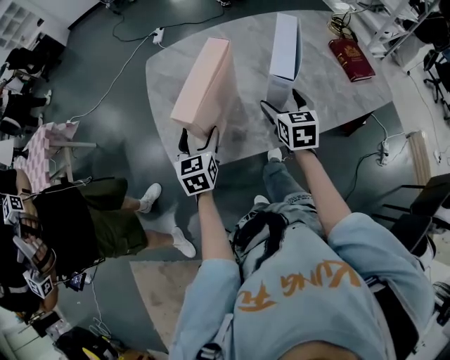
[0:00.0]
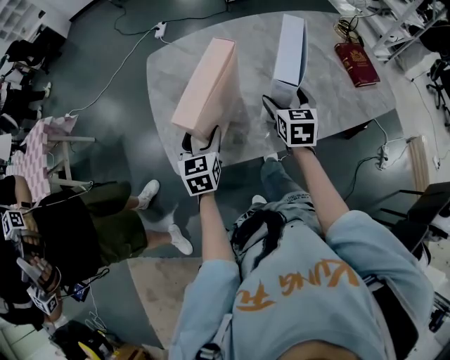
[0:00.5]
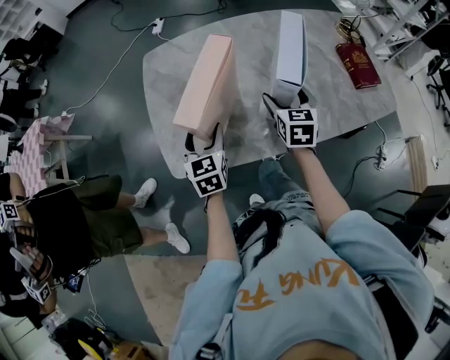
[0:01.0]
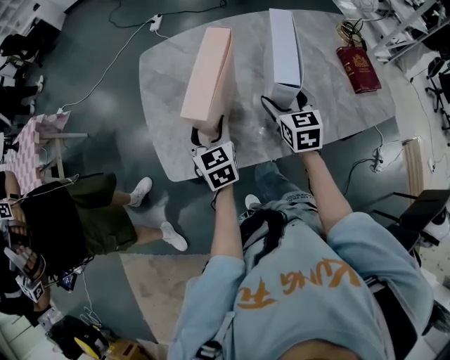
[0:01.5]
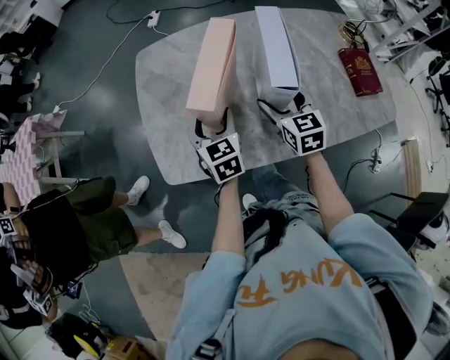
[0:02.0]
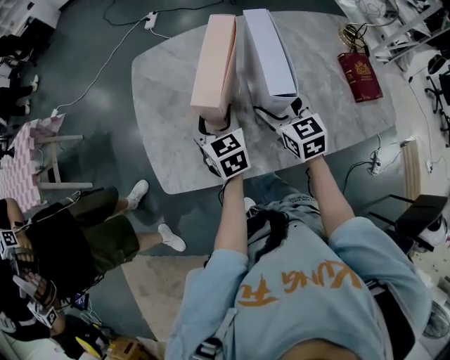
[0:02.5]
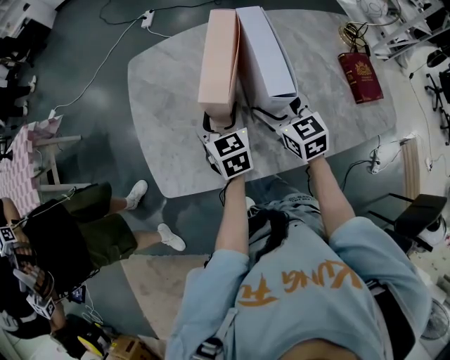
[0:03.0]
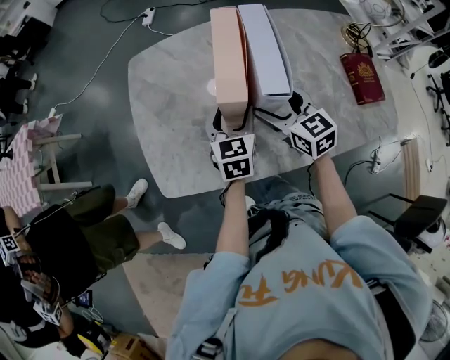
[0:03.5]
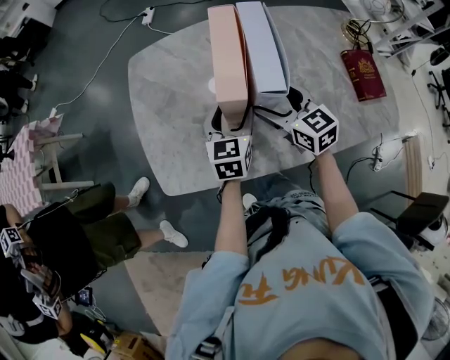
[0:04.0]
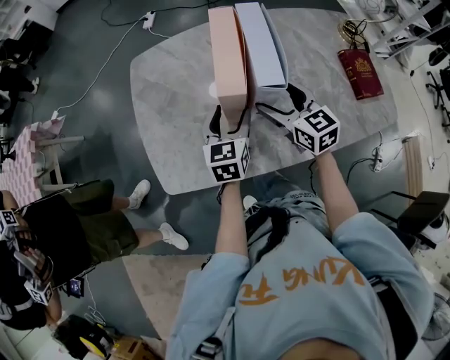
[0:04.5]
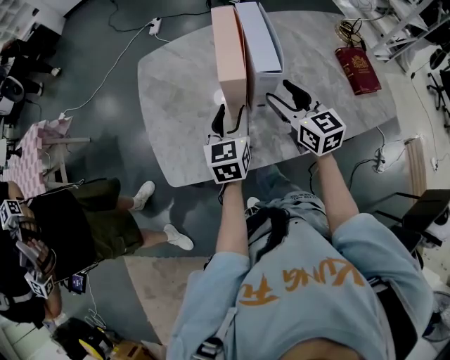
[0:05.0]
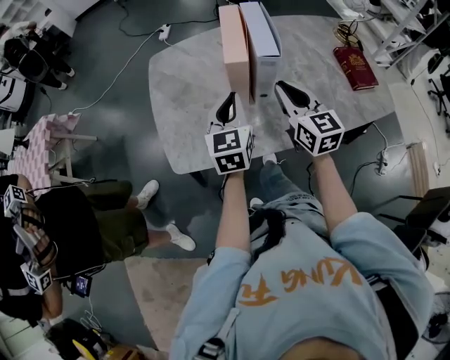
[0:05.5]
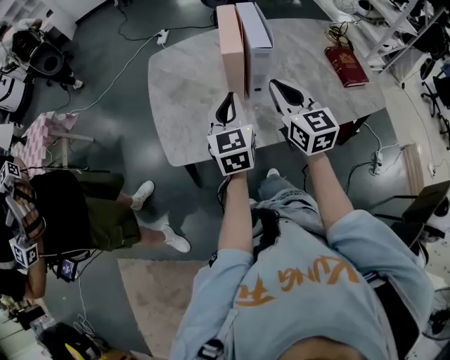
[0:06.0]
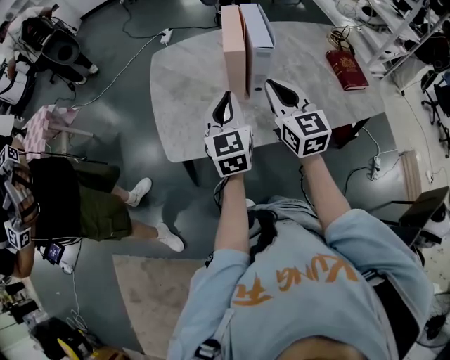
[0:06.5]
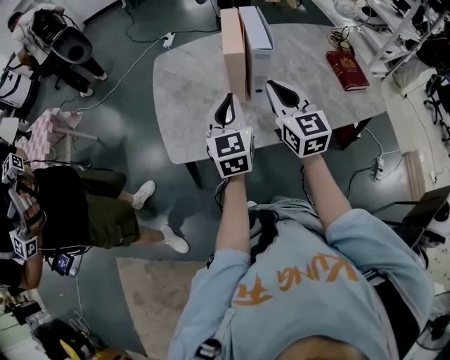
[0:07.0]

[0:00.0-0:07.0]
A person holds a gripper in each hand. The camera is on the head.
0:00.0 to 0:02.0: The right gripper is displaced forward by approximately 10 cm. Meanwhile the left gripper goes roughly 10 cm forward and to the right.
0:02.0 to 0:03.5: The left gripper heads to the right, covering roughly 10 cm.
0:03.5 to 0:05.0: The left gripper shifts some 5 cm backward; the right gripper moves some 5 cm.
0:05.0 to 0:07.0: Both grippers travel together backward and upward, roughly 15 cm. The right gripper closes its fingers. The left gripper closes.

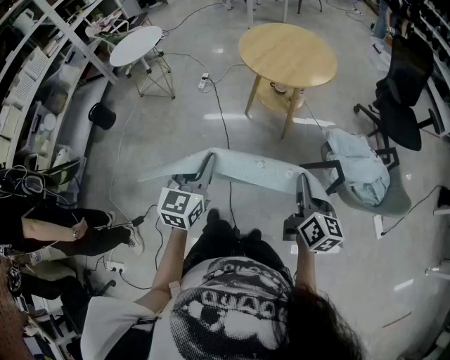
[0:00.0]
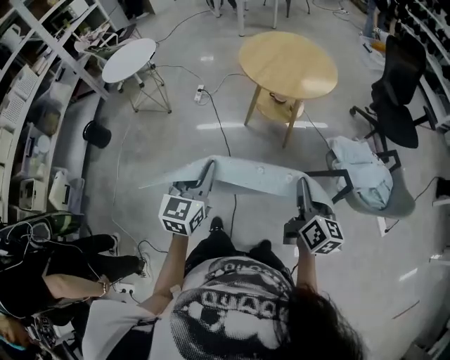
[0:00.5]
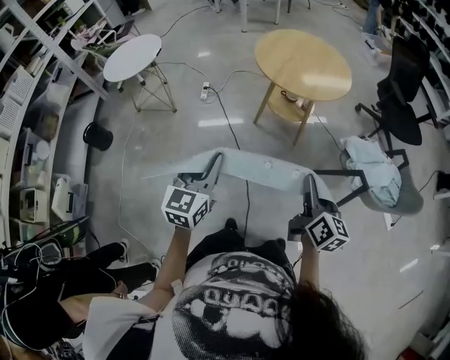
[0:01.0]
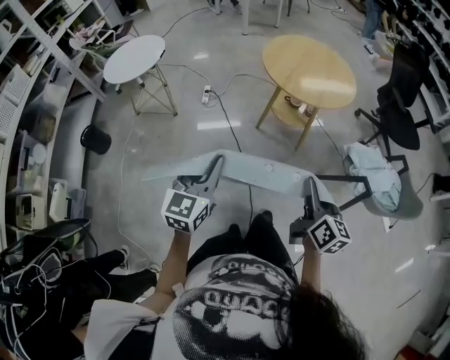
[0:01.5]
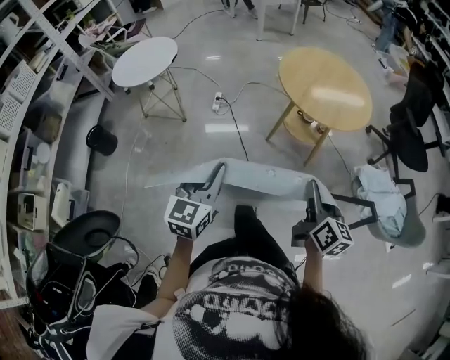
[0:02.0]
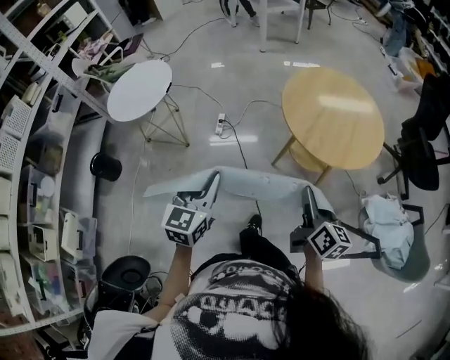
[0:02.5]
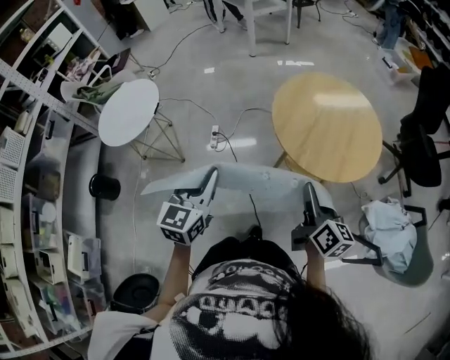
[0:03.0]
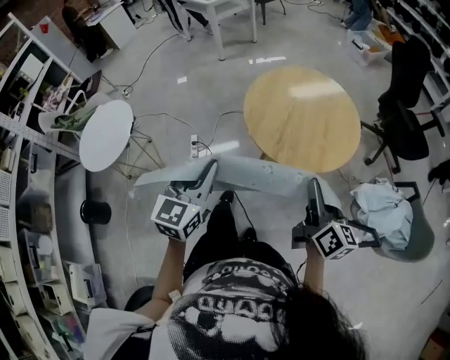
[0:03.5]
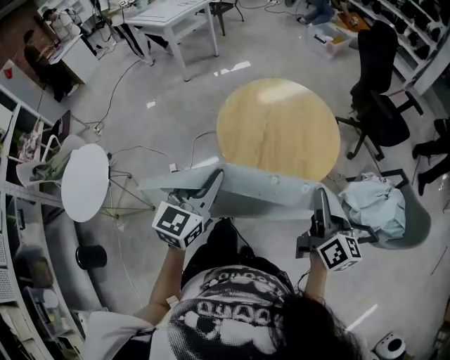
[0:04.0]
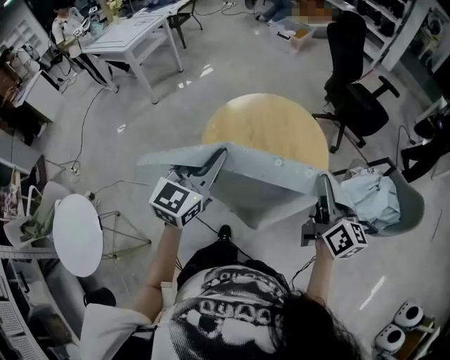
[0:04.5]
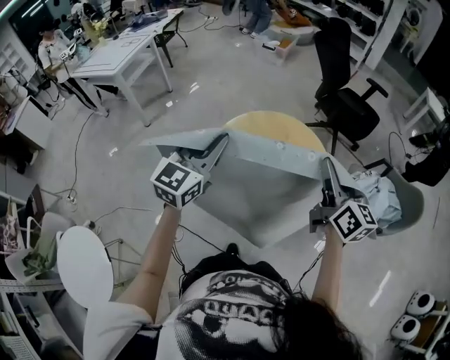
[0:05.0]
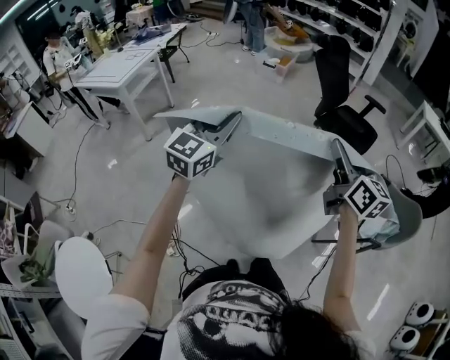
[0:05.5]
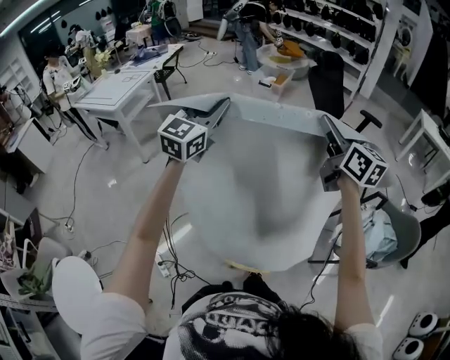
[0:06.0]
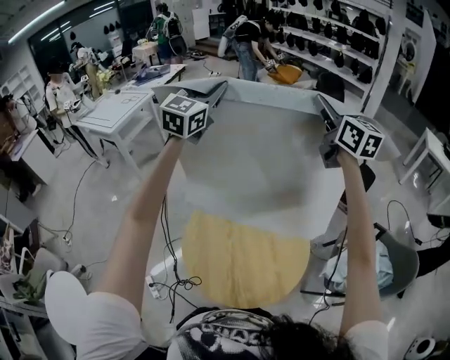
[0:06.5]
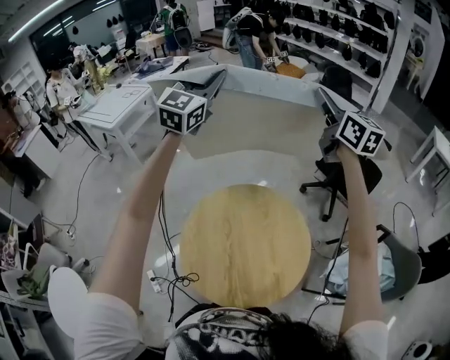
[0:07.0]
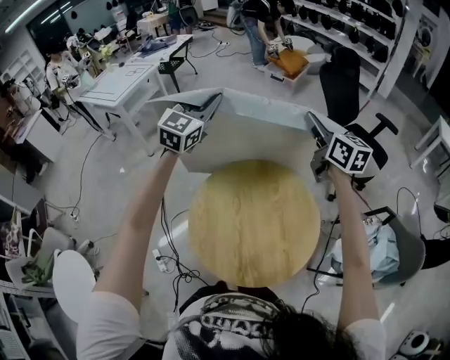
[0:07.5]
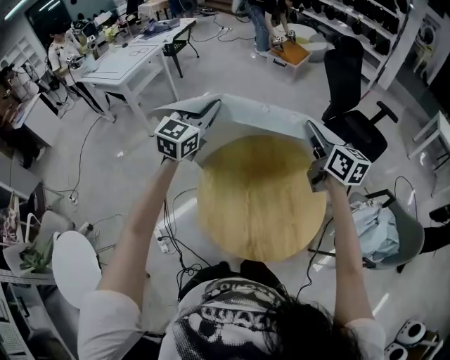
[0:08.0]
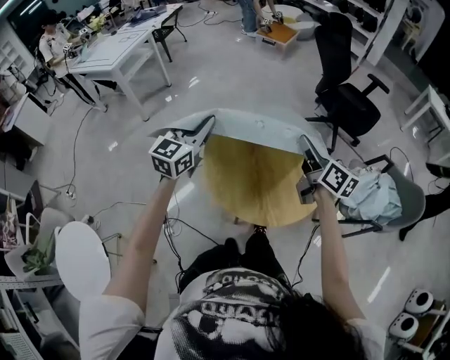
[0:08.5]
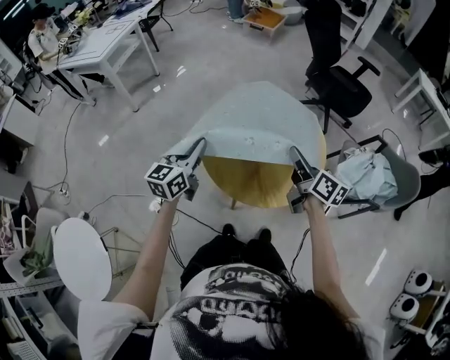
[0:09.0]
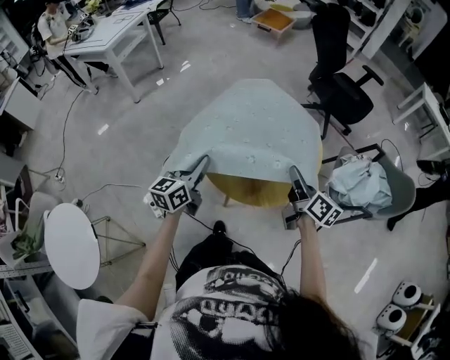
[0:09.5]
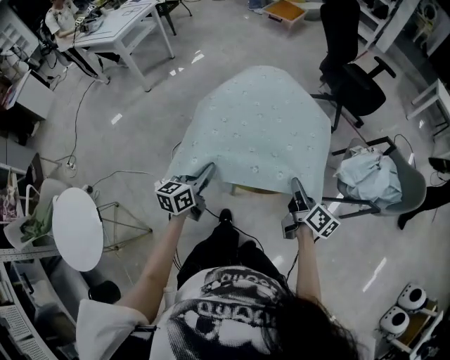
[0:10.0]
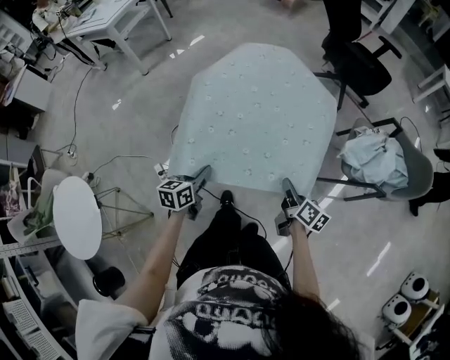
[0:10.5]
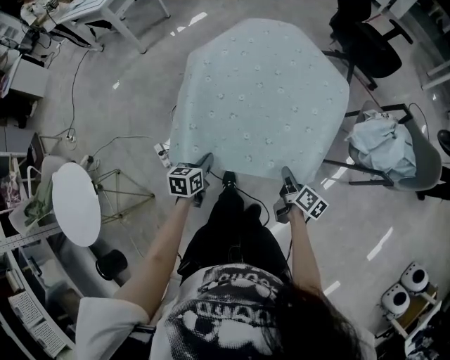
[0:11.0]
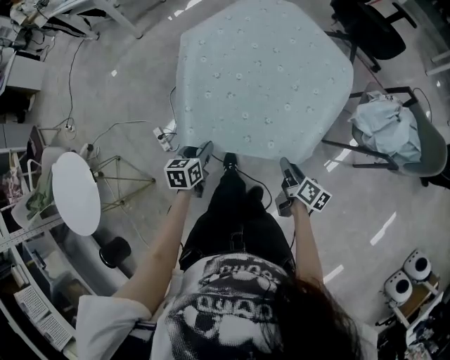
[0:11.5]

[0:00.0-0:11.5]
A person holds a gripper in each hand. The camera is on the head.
0:00.0 to 0:02.0: The grippers both shift to the left and forward by roughly 30 cm.
0:02.0 to 0:04.0: The right gripper shifts by roughly 35 cm, and changes its angle by roughly 30 degrees. The left gripper changes place by approximately 40 cm, and swivels about 30 degrees.
0:04.0 to 0:06.0: The two grippers go approximately 40 cm forward and upward. The left gripper turns by approximately 30 degrees, while the right gripper changes its angle by about 20 degrees.
0:06.0 to 0:07.5: The right gripper travels forward and downward by some 15 cm, while the left gripper is displaced forward by some 10 cm.
0:07.5 to 0:09.5: Both grippers move backward and downward, roughly 50 cm. The left gripper rotates around the line of its fingers by approximately 50 degrees, counterclockwise from behind, while the right gripper turns by approximately 30 degrees.
0:09.5 to 0:11.5: The grippers both shift downward and backward by approximately 25 cm. The right gripper changes its angle by about 20 degrees. Meanwhile the left gripper tilts its fingers roughly 30 degrees downward, and opens up.

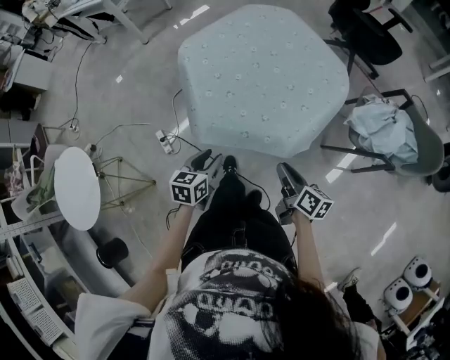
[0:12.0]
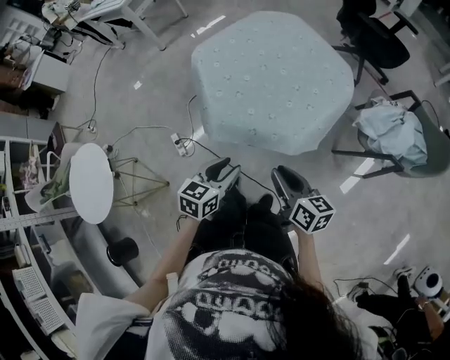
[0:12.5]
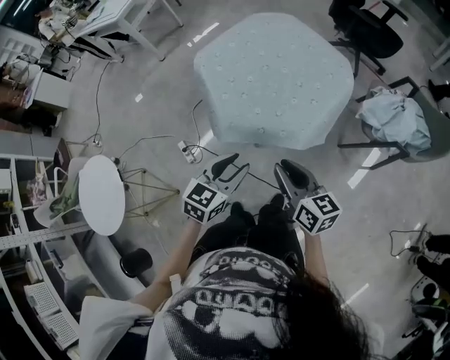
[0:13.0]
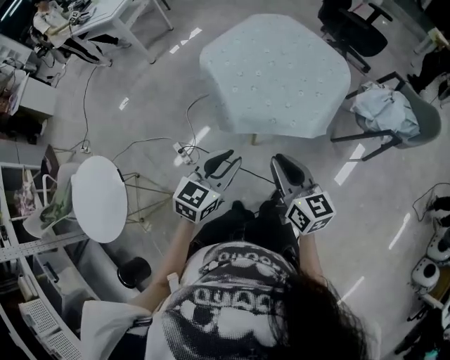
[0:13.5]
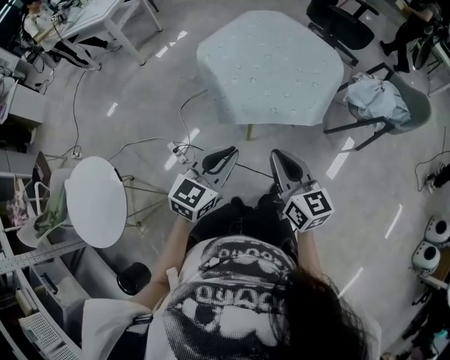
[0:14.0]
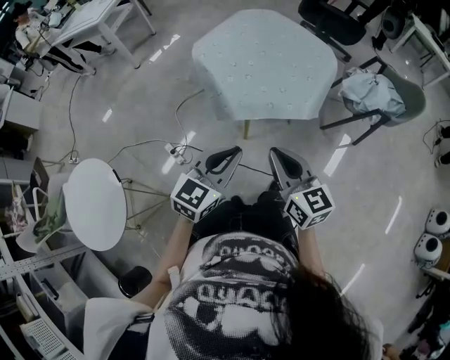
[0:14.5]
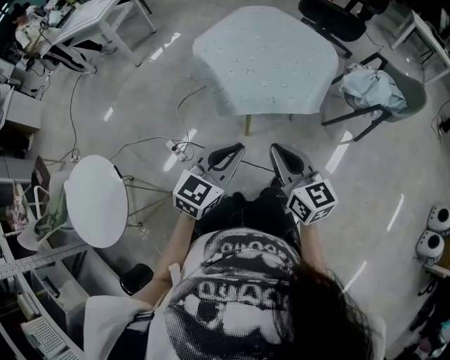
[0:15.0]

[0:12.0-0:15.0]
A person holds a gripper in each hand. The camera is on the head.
0:12.0 to 0:13.5: The right gripper shifts about 25 cm upward, to the left and backward, and changes its angle by about 40 degrees. The left gripper heads upward and backward, covering about 20 cm, and rotates about 30 degrees.
0:13.5 to 0:15.0: Both grippers travel together backward, roughly 5 cm.

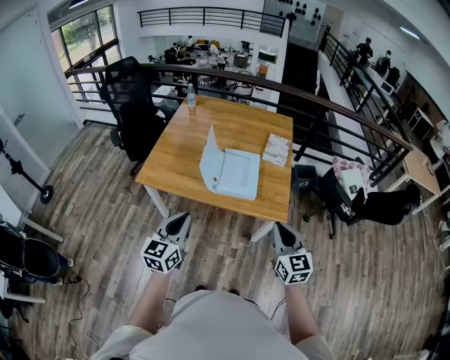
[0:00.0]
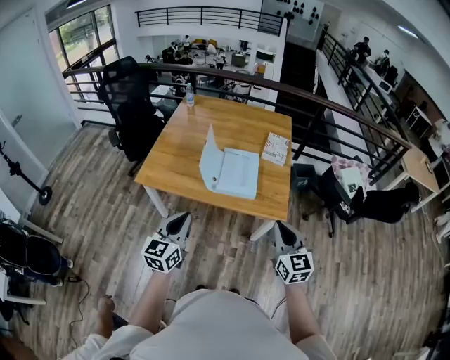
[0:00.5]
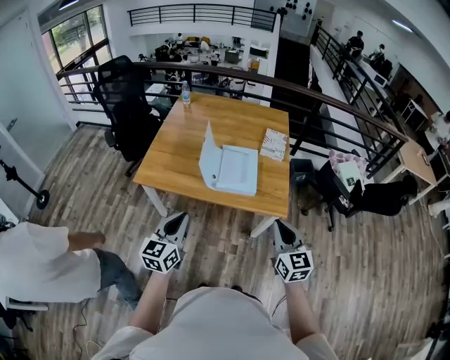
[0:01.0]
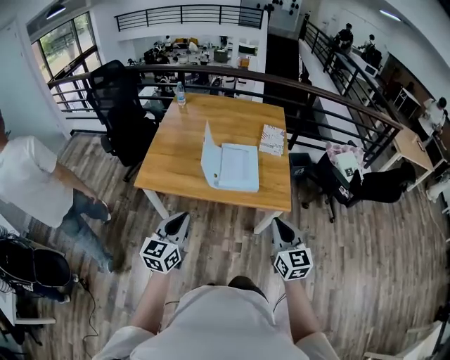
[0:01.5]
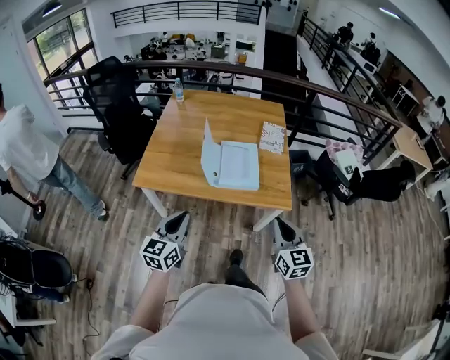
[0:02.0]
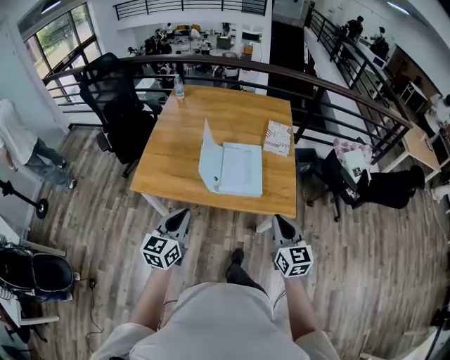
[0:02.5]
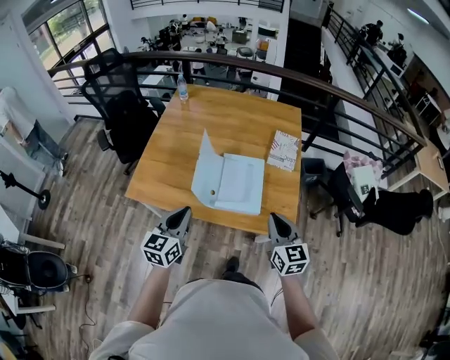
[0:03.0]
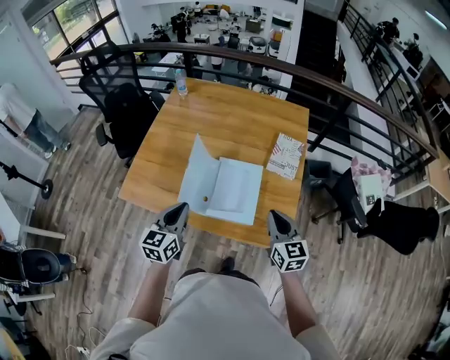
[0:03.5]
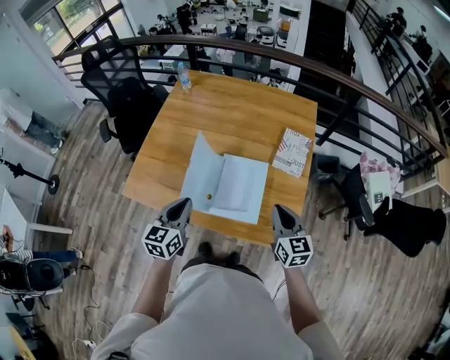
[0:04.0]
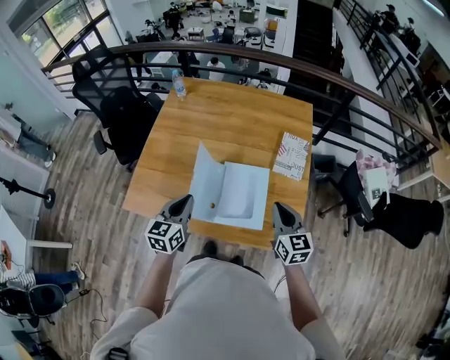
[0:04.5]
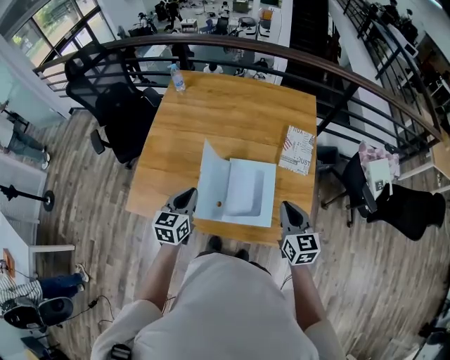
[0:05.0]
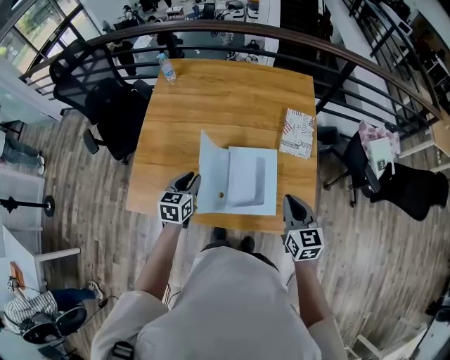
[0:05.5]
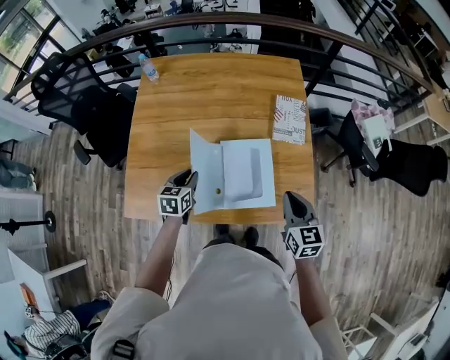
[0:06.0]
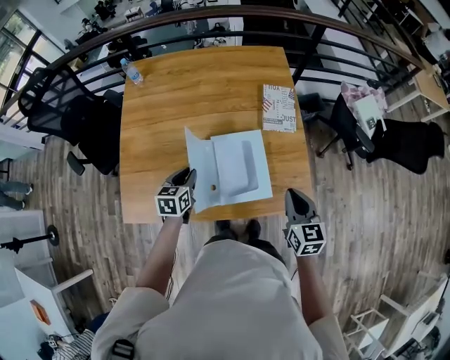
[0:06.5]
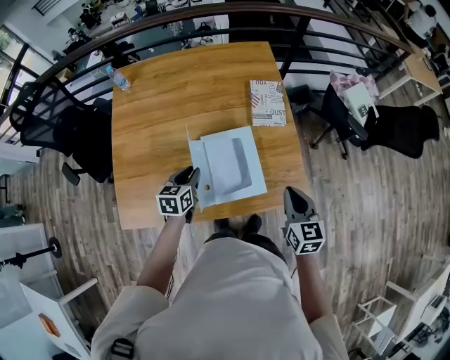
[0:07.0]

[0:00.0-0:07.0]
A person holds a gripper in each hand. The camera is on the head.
0:00.0 to 0:02.0: The grippers both shift to the left by approximately 5 cm.
0:02.0 to 0:03.5: Both grippers travel together forward, some 30 cm.
0:03.5 to 0:05.0: The left gripper moves forward and to the left, approximately 15 cm, while the right gripper travels forward by some 5 cm.
0:05.0 to 0:07.0: The right gripper shifts roughly 5 cm to the right and backward, and rotates about 20 degrees, while the left gripper goes roughly 15 cm downward, forward and to the right, and turns by roughly 20 degrees.
